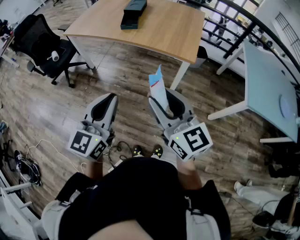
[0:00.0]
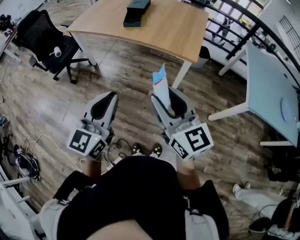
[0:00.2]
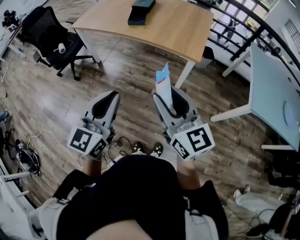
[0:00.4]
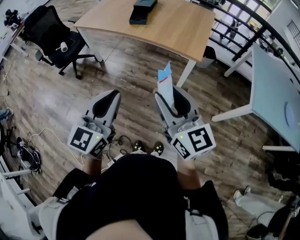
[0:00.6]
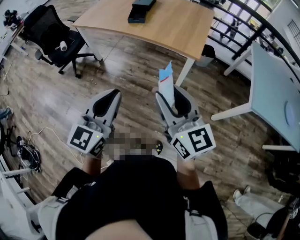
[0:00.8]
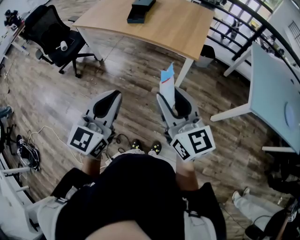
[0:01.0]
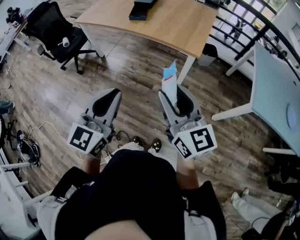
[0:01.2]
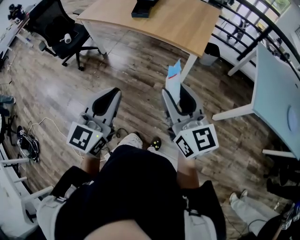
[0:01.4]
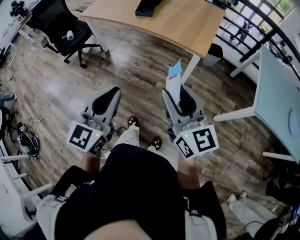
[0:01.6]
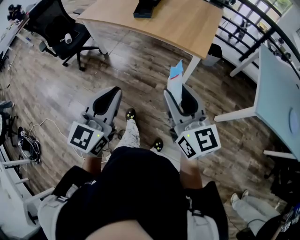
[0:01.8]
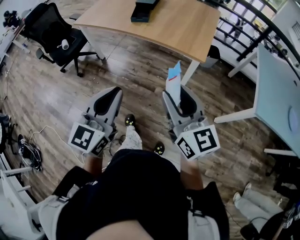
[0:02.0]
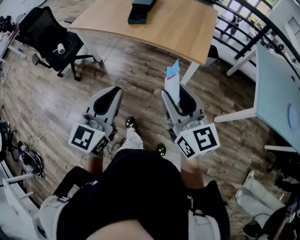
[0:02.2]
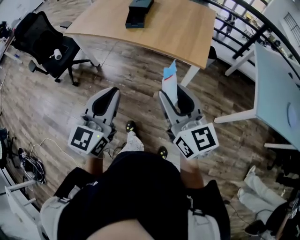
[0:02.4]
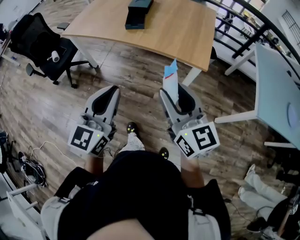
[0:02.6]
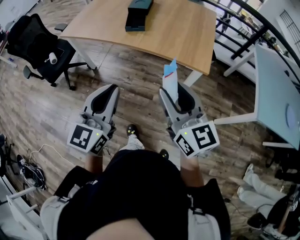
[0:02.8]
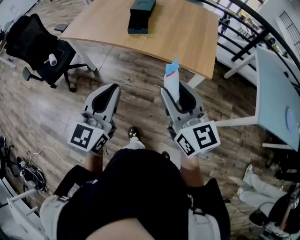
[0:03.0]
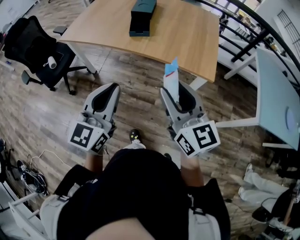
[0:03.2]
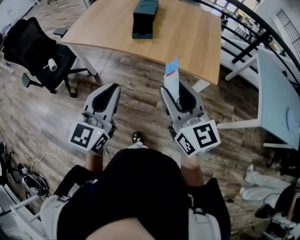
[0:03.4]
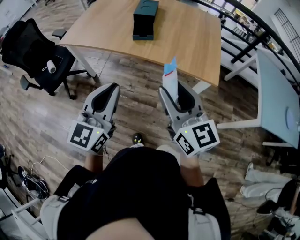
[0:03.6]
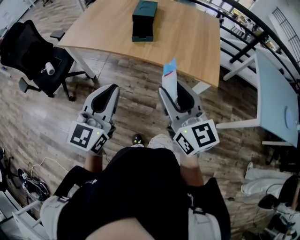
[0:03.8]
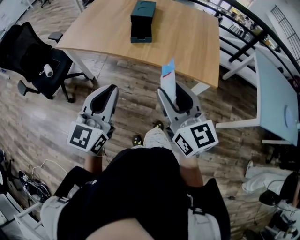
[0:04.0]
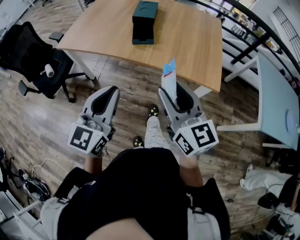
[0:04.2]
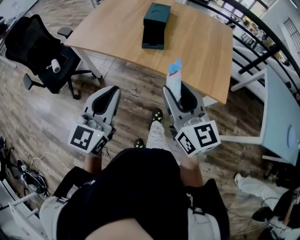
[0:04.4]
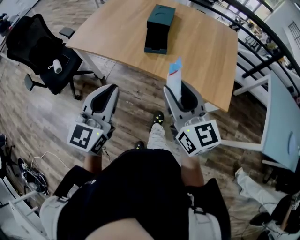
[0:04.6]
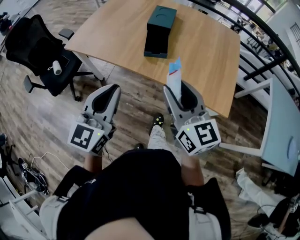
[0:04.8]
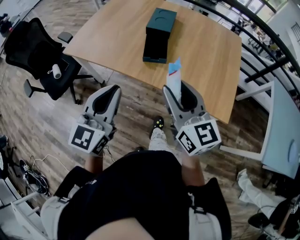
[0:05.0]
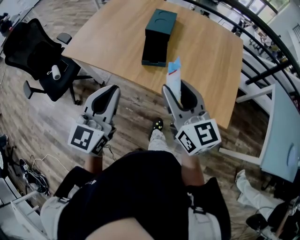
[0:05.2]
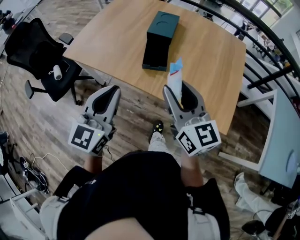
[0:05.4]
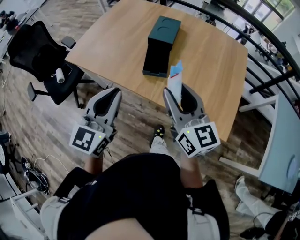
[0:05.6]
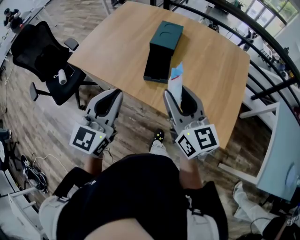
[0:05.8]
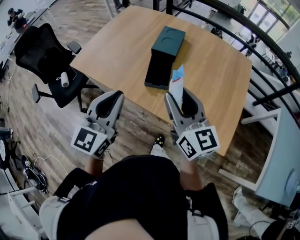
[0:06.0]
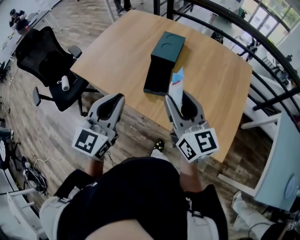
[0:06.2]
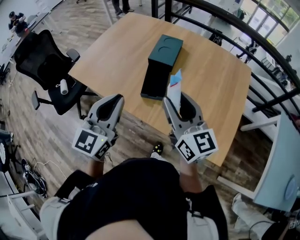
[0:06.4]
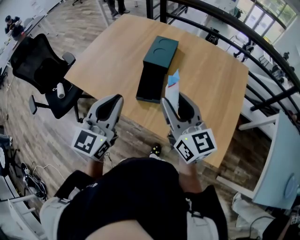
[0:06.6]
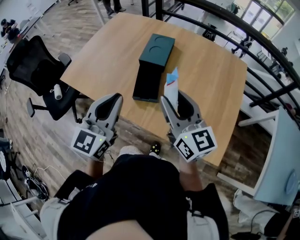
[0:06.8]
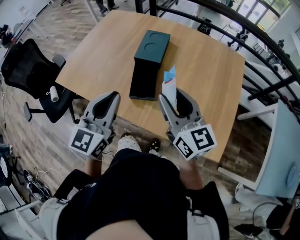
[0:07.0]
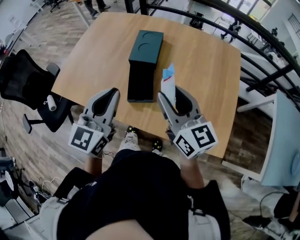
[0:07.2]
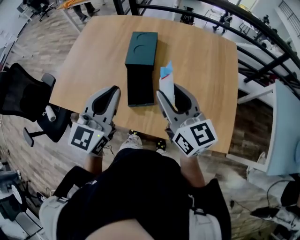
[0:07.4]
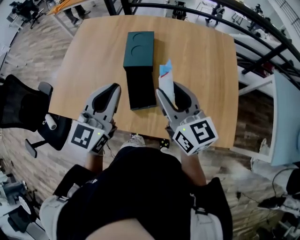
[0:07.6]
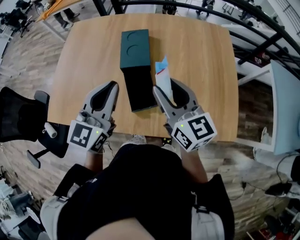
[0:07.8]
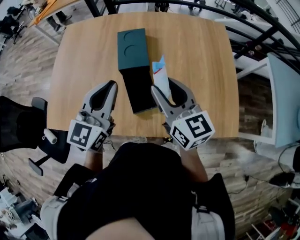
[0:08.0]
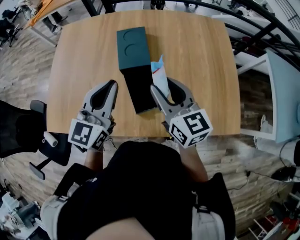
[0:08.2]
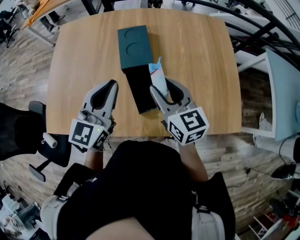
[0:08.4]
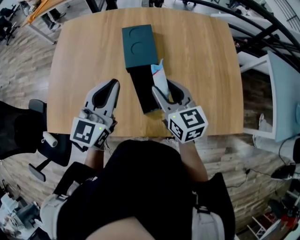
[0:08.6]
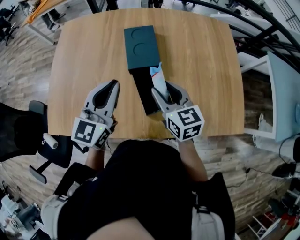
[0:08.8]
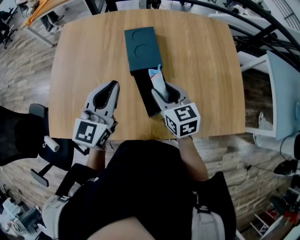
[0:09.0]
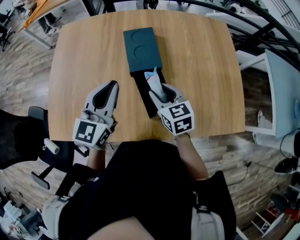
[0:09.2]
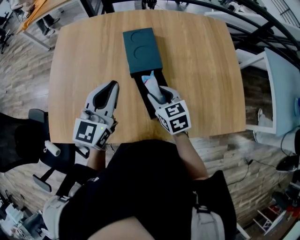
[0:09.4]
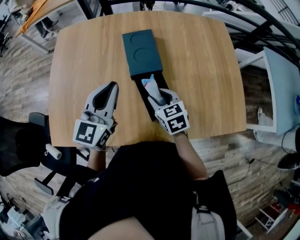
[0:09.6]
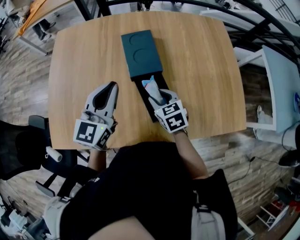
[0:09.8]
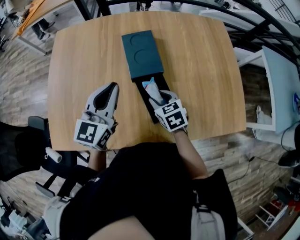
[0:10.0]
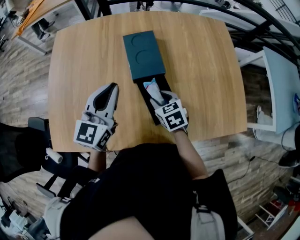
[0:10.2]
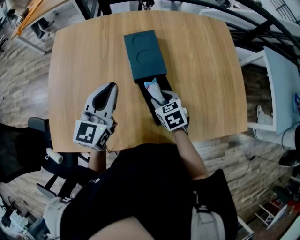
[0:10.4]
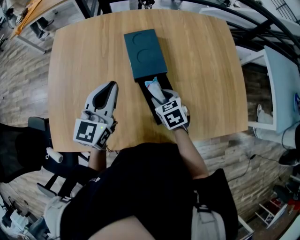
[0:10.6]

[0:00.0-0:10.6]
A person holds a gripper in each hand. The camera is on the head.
0:00.0 to 0:01.6: The left gripper moves some 5 cm. Meanwhile the right gripper shifts some 5 cm to the right.
0:01.6 to 0:03.0: The two grippers go approximately 25 cm forward and to the left.
0:03.0 to 0:04.6: The two grippers go about 20 cm forward and to the left.
0:04.6 to 0:06.0: The grippers both shift forward by some 20 cm.
0:06.0 to 0:07.6: The grippers both shift forward by some 15 cm.
0:07.6 to 0:09.0: The left gripper shifts some 15 cm to the left, forward and downward. The right gripper is displaced downward, to the left and forward by approximately 20 cm, and changes its angle by approximately 30 degrees.
0:09.0 to 0:10.6: The right gripper heads downward, covering roughly 10 cm, and rotates roughly 30 degrees, while the left gripper ends up some 5 cm from where it was.

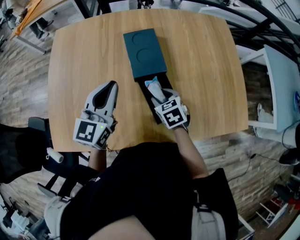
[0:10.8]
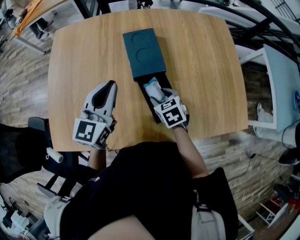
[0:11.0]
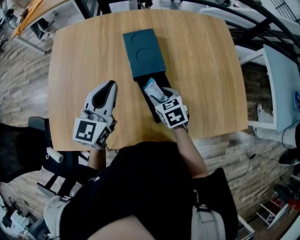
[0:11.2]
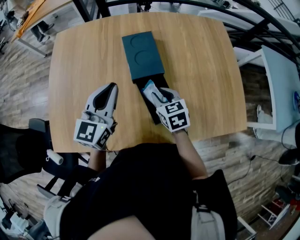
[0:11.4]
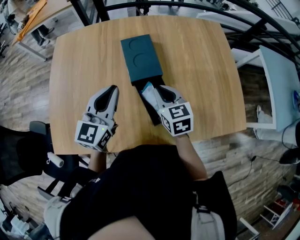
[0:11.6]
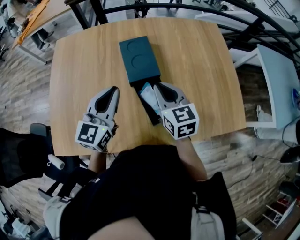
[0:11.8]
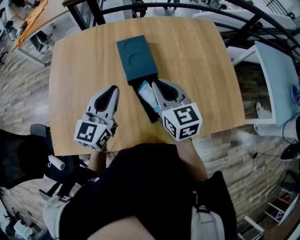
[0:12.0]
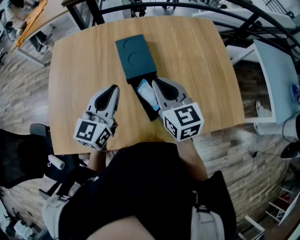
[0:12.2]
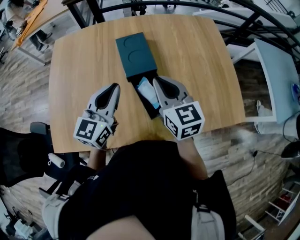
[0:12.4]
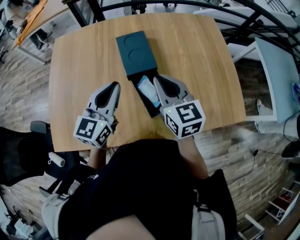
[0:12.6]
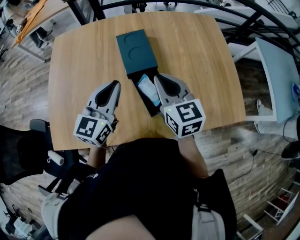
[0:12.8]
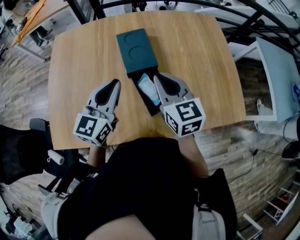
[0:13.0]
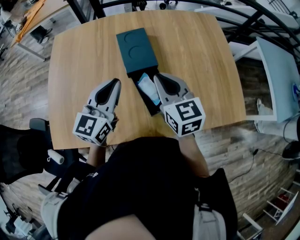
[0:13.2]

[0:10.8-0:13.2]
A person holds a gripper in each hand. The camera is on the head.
0:10.8 to 0:12.0: The right gripper travels upward by about 20 cm, angles its fingers upward, by some 40 degrees, and closes its fingers.
0:12.0 to 0:13.2: The grippers move only a little.

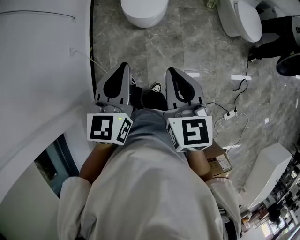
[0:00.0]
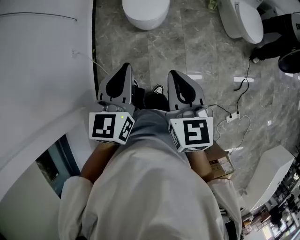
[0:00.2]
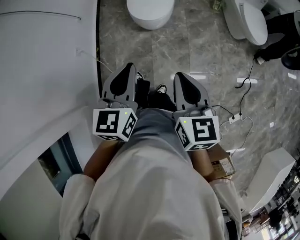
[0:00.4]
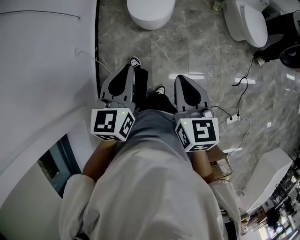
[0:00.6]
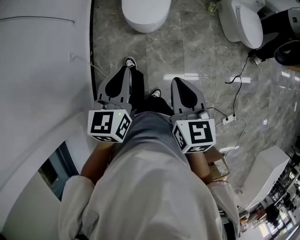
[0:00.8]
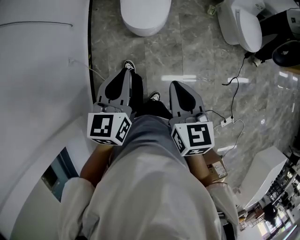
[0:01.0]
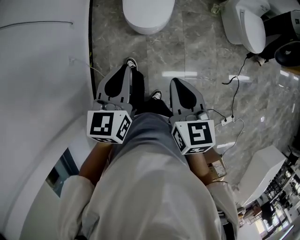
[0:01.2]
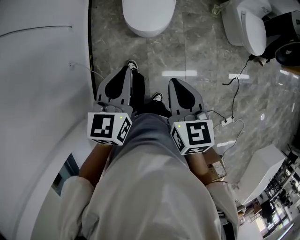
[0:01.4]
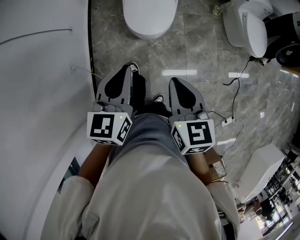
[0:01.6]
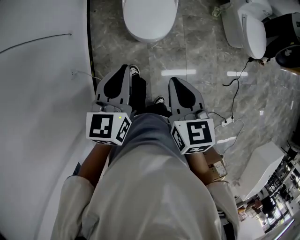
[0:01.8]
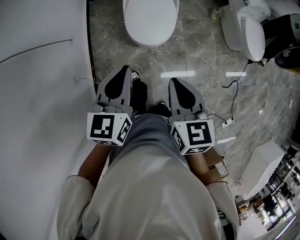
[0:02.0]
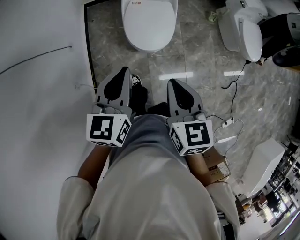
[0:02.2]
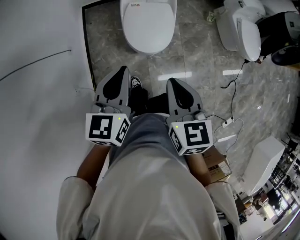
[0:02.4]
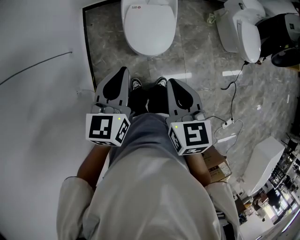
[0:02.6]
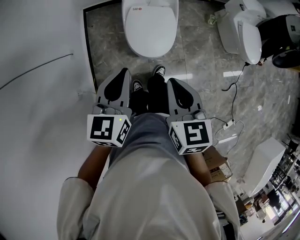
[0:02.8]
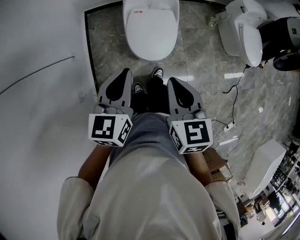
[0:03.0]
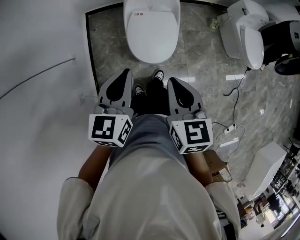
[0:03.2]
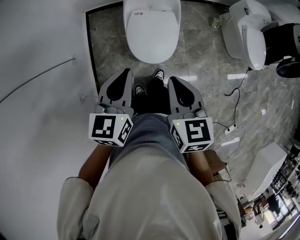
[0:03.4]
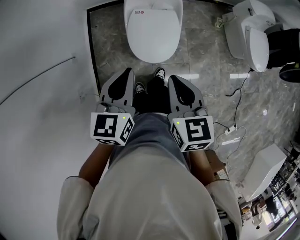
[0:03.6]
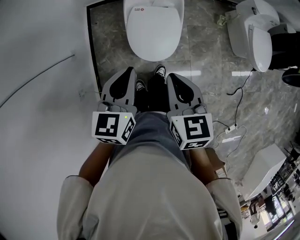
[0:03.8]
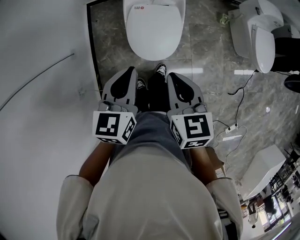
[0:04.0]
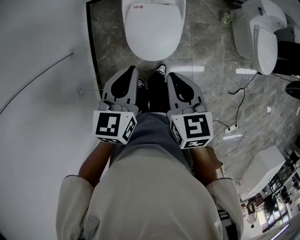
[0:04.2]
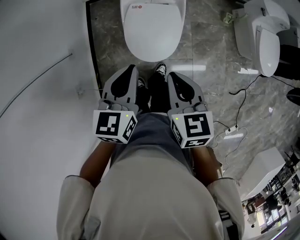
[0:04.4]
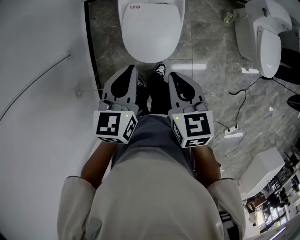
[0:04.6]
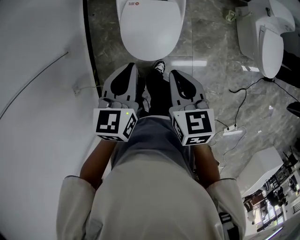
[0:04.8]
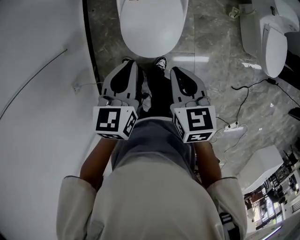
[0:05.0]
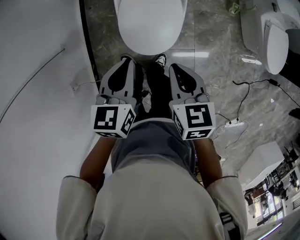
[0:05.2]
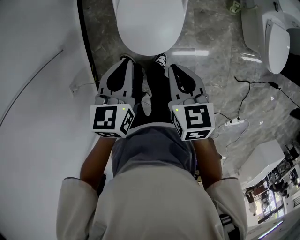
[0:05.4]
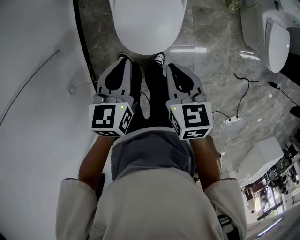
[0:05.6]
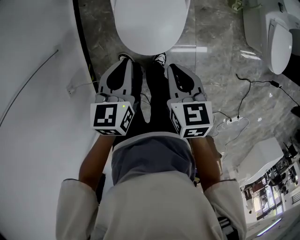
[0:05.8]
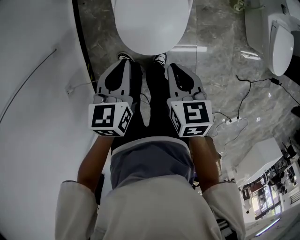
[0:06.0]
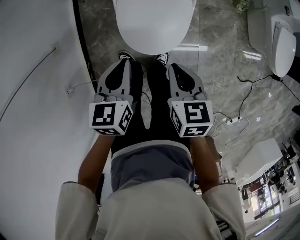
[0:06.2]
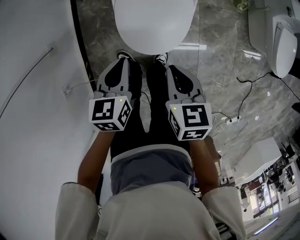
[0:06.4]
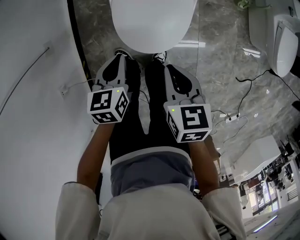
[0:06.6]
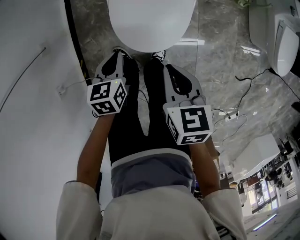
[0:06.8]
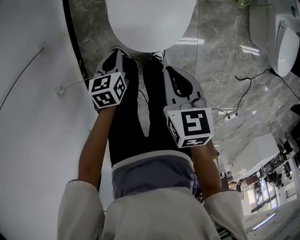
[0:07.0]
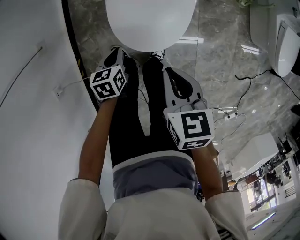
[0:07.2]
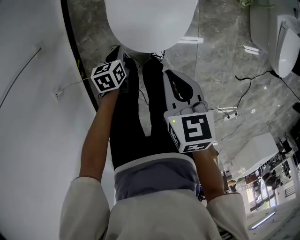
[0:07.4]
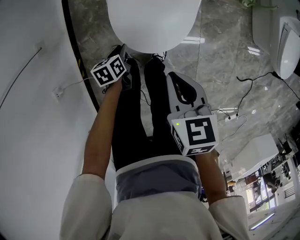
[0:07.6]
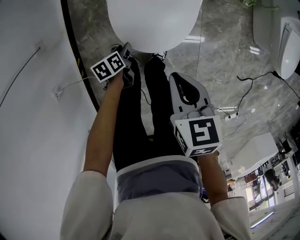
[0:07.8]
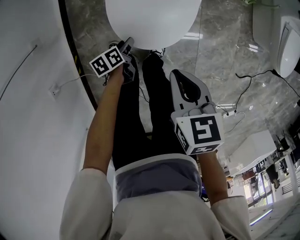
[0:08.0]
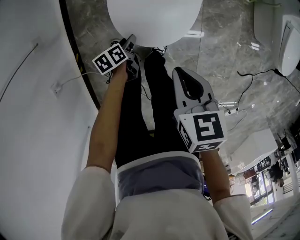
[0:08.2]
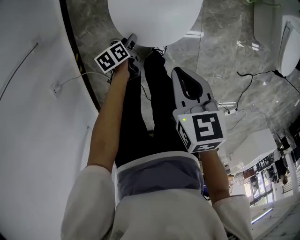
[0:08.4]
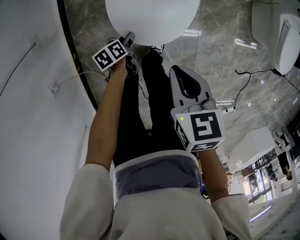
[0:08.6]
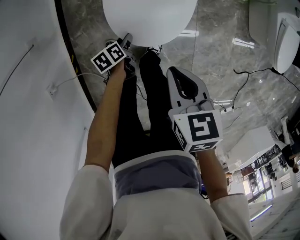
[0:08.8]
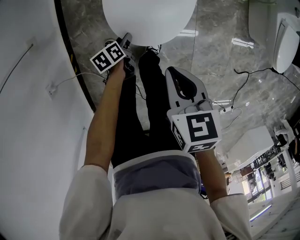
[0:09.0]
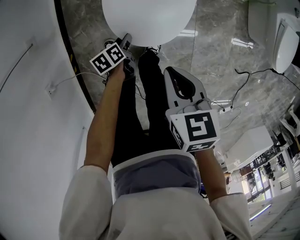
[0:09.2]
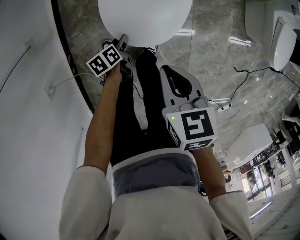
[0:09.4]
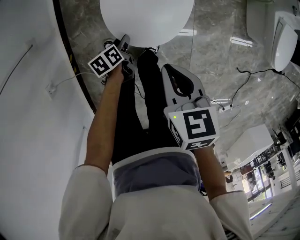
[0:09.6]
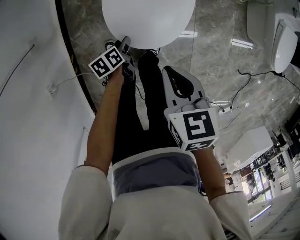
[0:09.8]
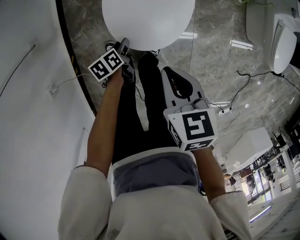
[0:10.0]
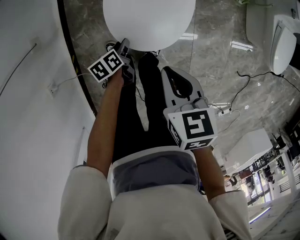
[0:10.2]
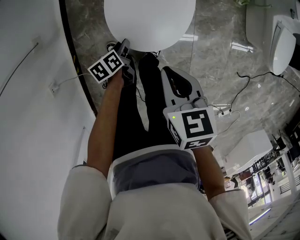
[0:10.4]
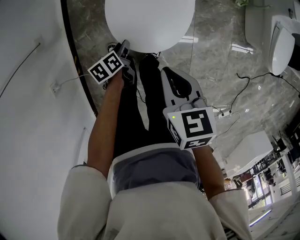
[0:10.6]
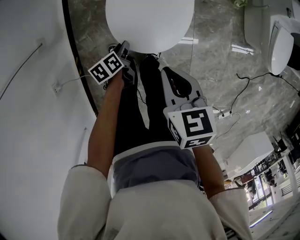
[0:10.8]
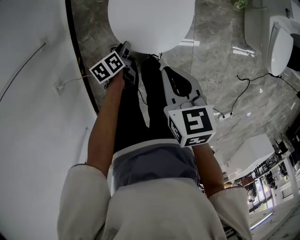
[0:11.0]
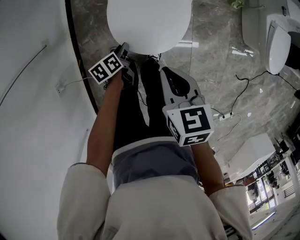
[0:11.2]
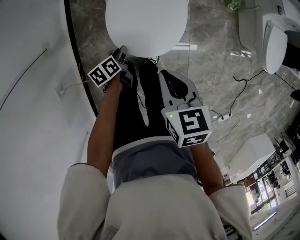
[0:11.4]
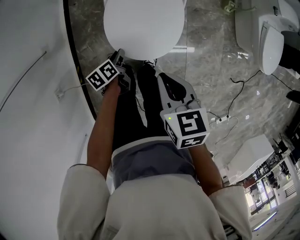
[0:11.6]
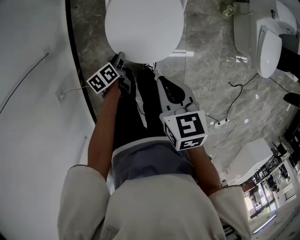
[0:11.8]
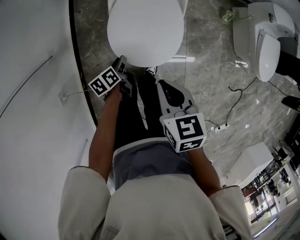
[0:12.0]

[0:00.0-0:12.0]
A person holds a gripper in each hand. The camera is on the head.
0:00.0 to 0:01.6: Both grippers move forward, roughly 20 cm.
0:01.6 to 0:03.0: The grippers both shift forward and to the left by about 20 cm.
0:03.0 to 0:04.4: The right gripper heads forward, downward and to the right, covering roughly 15 cm, while the left gripper goes about 15 cm forward, to the right and downward.
0:04.4 to 0:06.0: The grippers both shift downward by roughly 15 cm.
0:06.0 to 0:07.6: The right gripper shifts about 5 cm downward. Meanwhile the left gripper goes approximately 30 cm downward, and turns by roughly 30 degrees.
0:07.6 to 0:09.0: The left gripper opens.
0:09.0 to 0:10.4: The left gripper shifts about 5 cm upward.
0:10.4 to 0:12.0: Both grippers move upward, roughly 10 cm.
